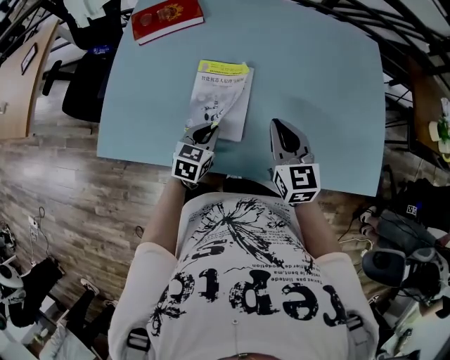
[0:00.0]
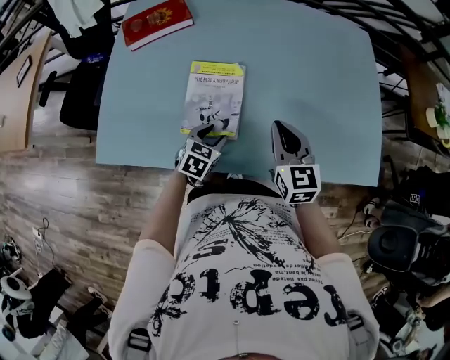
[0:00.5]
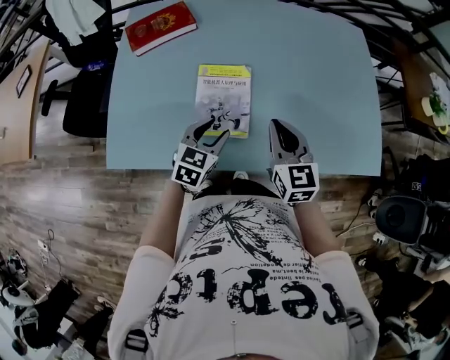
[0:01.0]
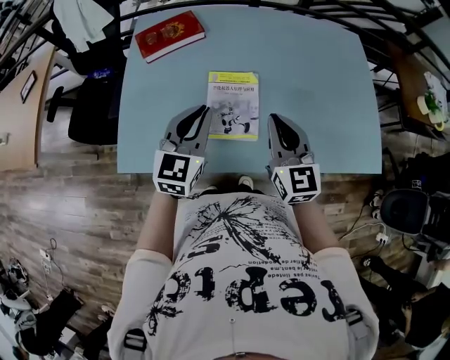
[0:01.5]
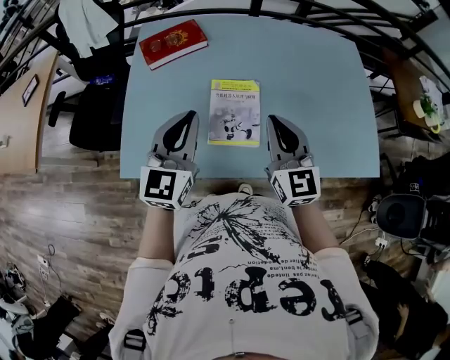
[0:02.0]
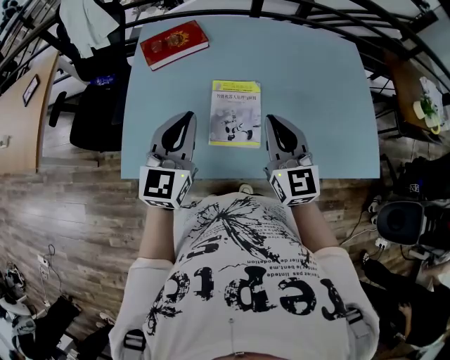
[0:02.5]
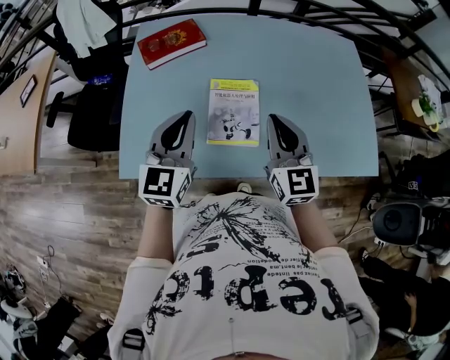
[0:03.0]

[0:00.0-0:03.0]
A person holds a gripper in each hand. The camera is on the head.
0:00.0 to 0:01.5: The right gripper heads upward and to the left, covering approximately 10 cm; the left gripper goes roughly 20 cm upward, turns by roughly 30 degrees, and opens and closes again.
0:01.5 to 0:03.0: The left gripper ends up approximately 5 cm from where it was.

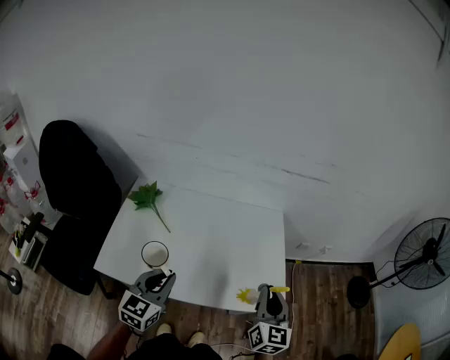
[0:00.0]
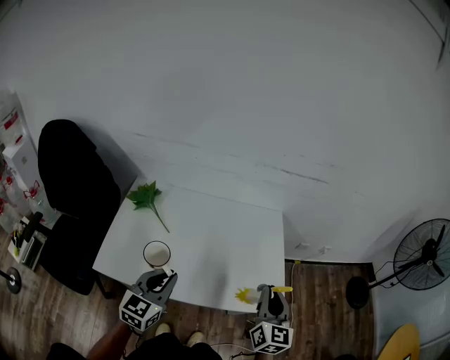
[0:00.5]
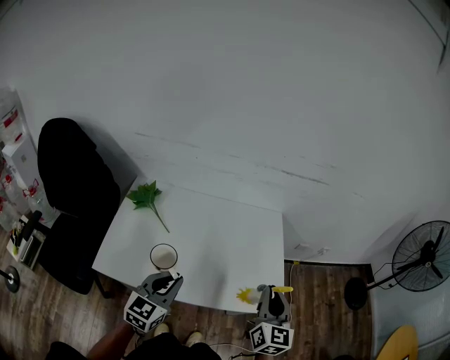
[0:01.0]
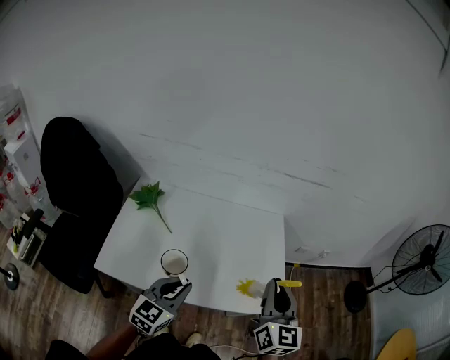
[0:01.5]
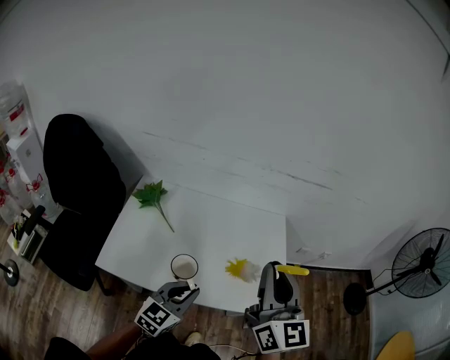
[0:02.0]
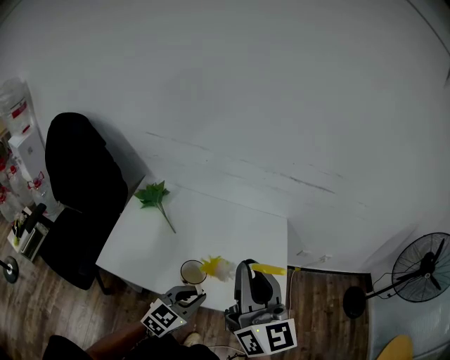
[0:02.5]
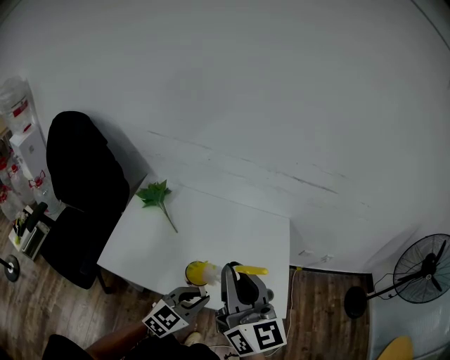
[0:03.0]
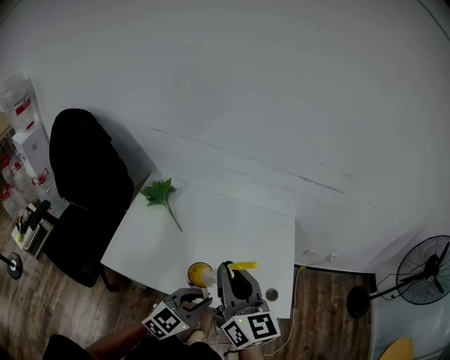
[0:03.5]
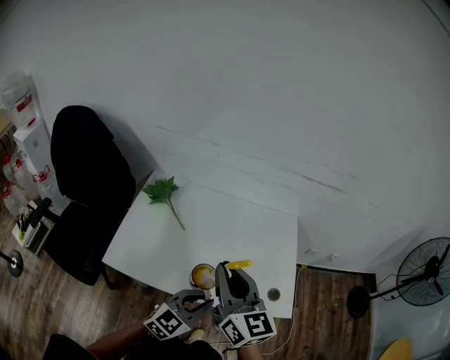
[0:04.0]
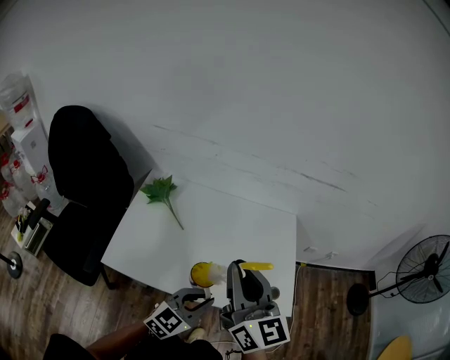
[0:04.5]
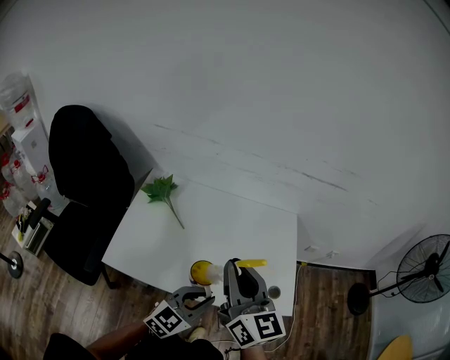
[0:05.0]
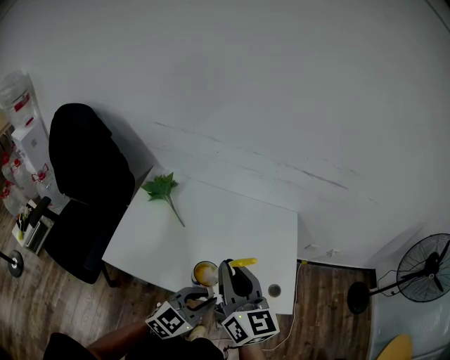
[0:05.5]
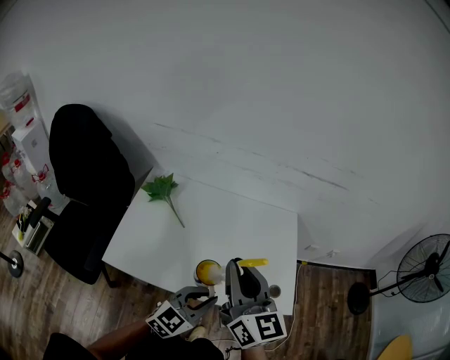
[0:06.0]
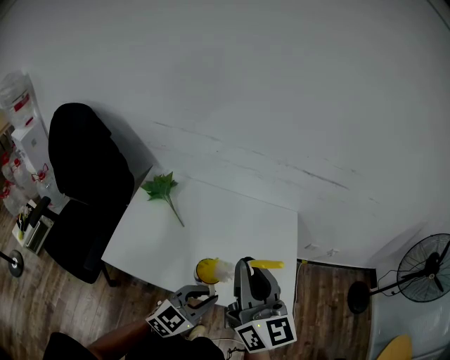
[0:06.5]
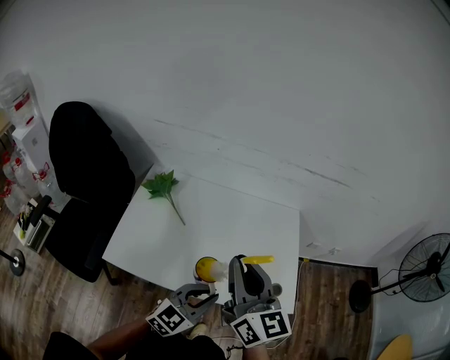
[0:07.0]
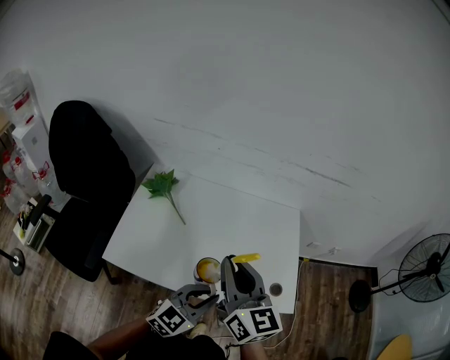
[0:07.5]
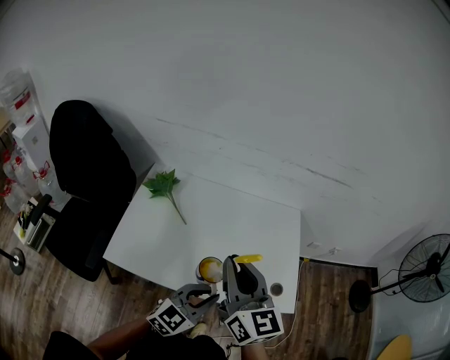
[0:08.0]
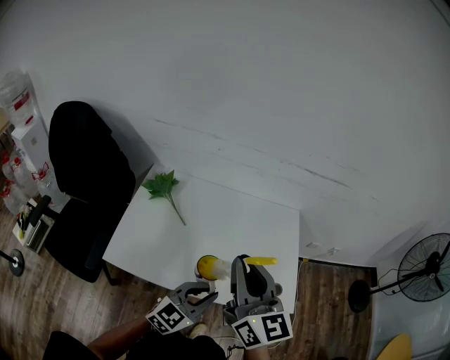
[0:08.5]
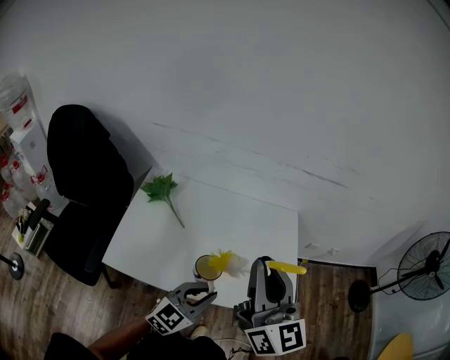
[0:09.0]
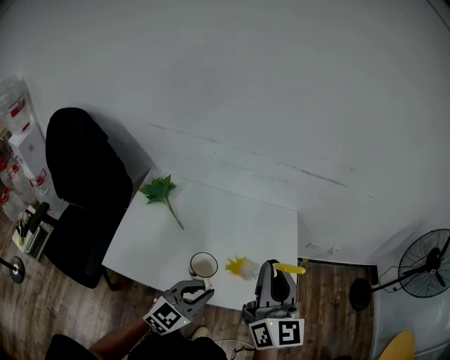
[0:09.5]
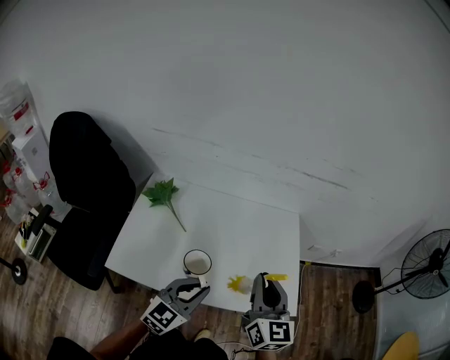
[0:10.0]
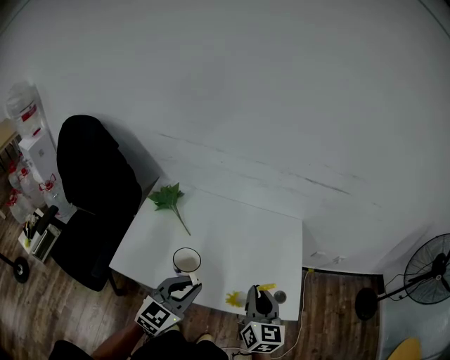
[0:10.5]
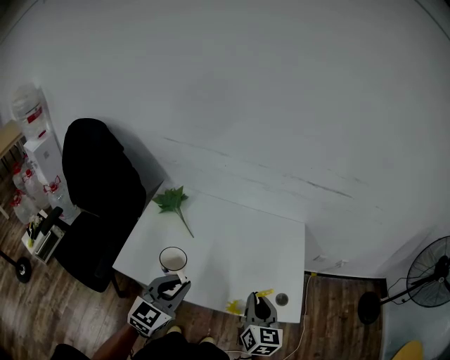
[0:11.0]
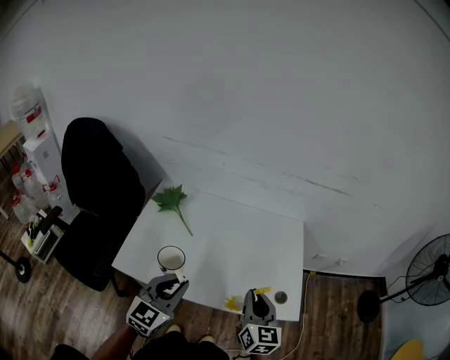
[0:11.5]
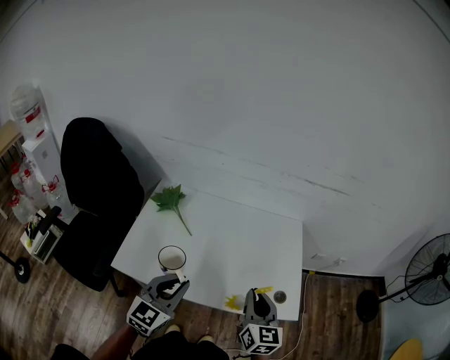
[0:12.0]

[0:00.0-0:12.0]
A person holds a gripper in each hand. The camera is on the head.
0:00.0 to 0:02.0: The right gripper heads upward and to the left, covering roughly 20 cm, and swivels roughly 20 degrees. Meanwhile the left gripper moves to the right, approximately 5 cm.
0:02.0 to 0:04.0: The right gripper travels to the left and downward by roughly 15 cm.
0:04.0 to 0:06.0: The grippers move only a little.
0:06.0 to 0:08.0: The grippers move only a little.
0:08.0 to 0:10.0: The right gripper heads to the right, covering about 10 cm.
0:10.0 to 0:12.0: The right gripper shifts approximately 10 cm downward; the left gripper goes some 5 cm to the left.

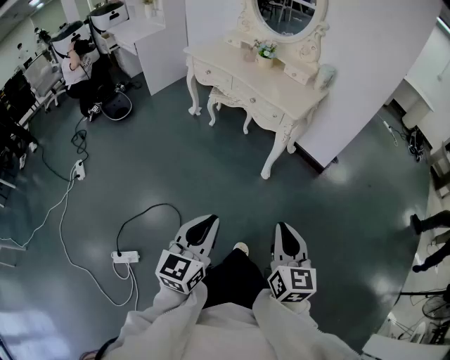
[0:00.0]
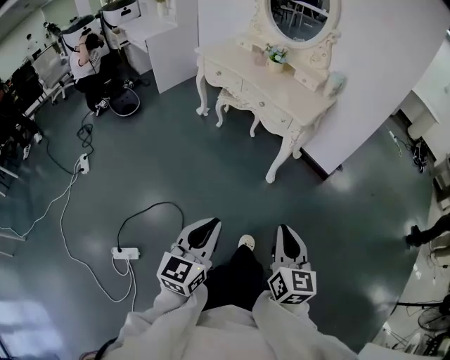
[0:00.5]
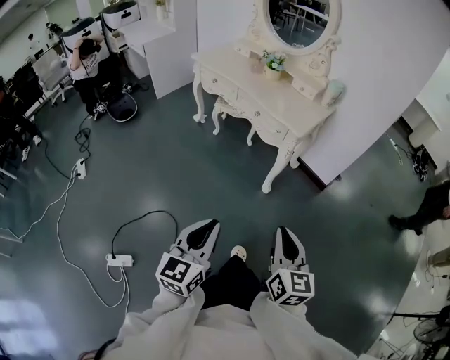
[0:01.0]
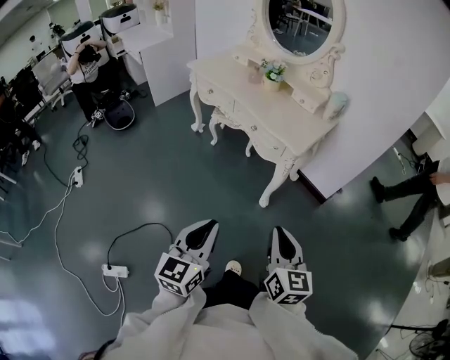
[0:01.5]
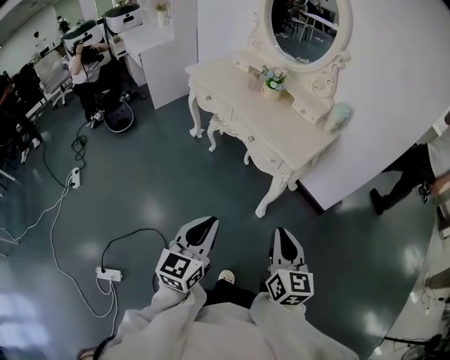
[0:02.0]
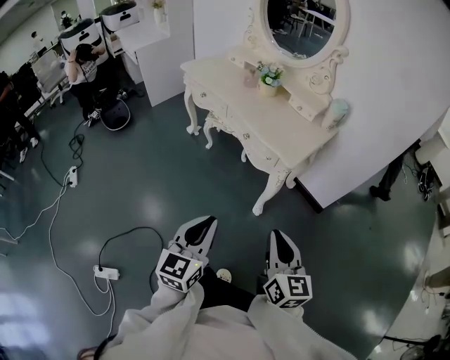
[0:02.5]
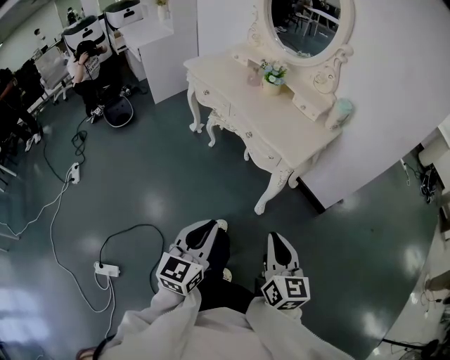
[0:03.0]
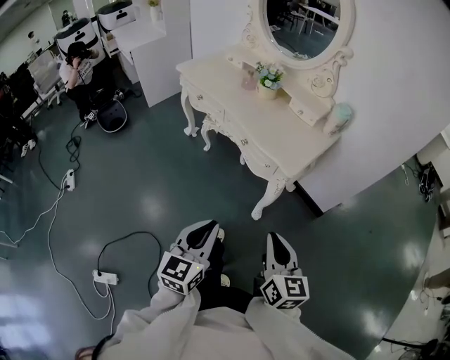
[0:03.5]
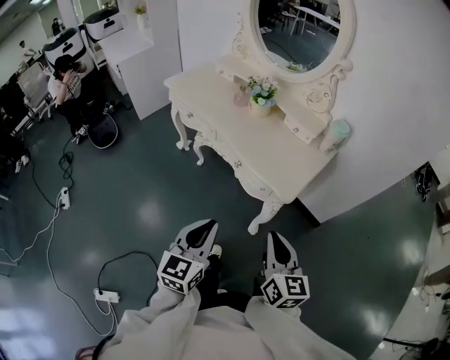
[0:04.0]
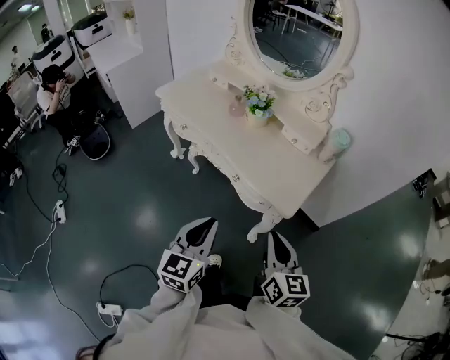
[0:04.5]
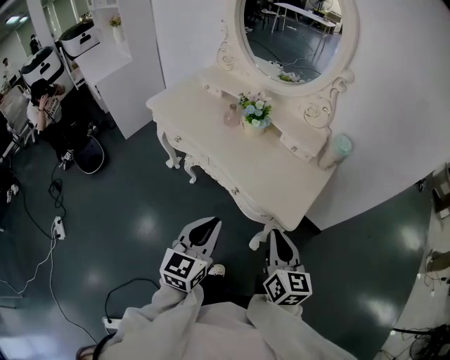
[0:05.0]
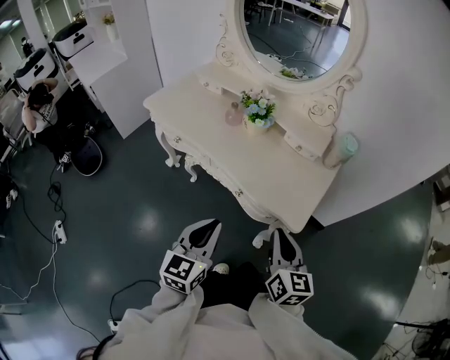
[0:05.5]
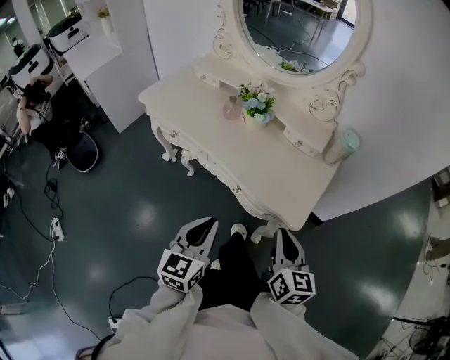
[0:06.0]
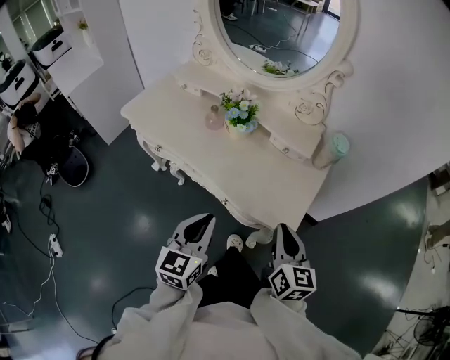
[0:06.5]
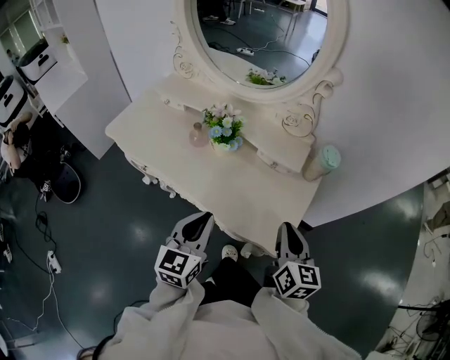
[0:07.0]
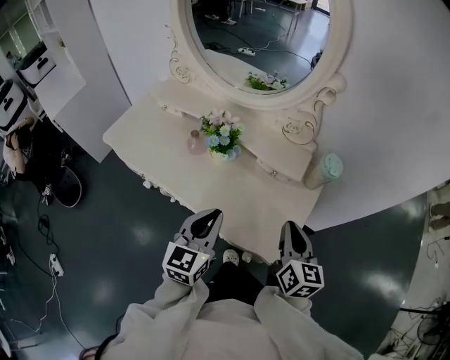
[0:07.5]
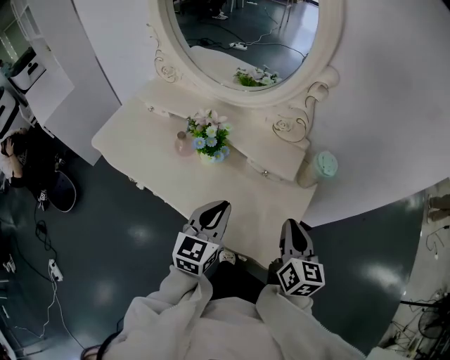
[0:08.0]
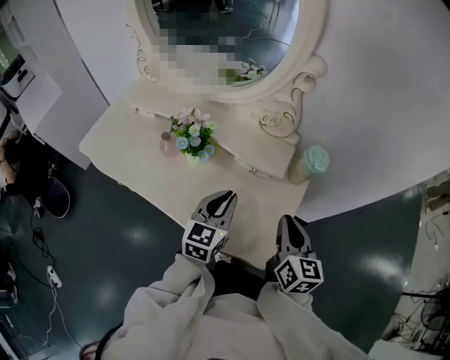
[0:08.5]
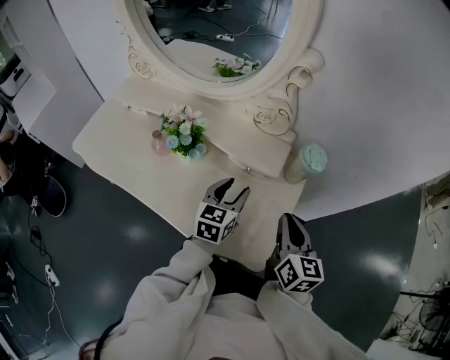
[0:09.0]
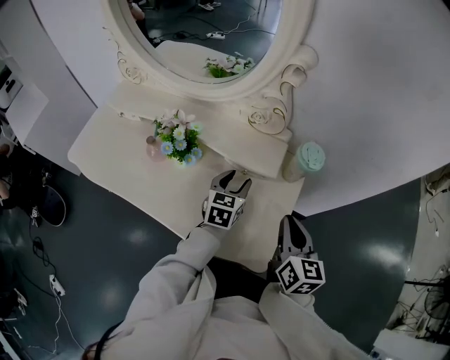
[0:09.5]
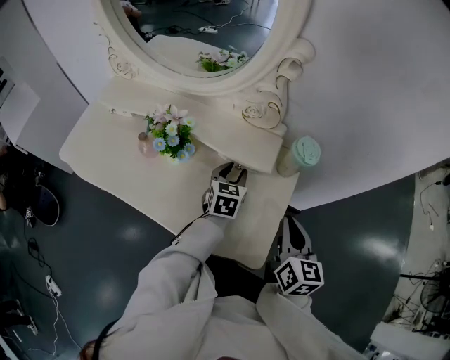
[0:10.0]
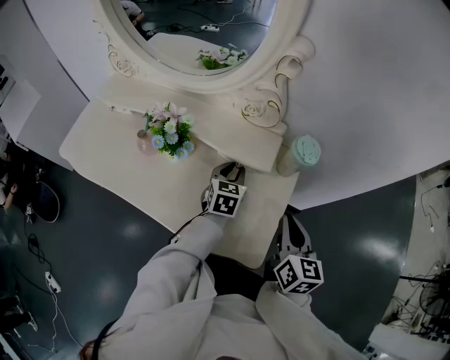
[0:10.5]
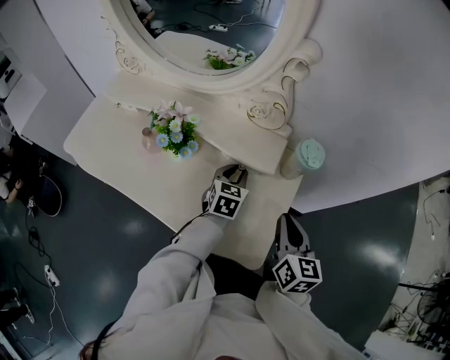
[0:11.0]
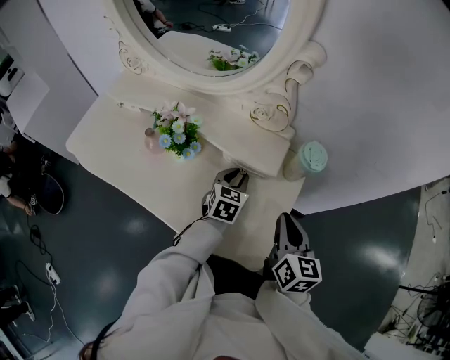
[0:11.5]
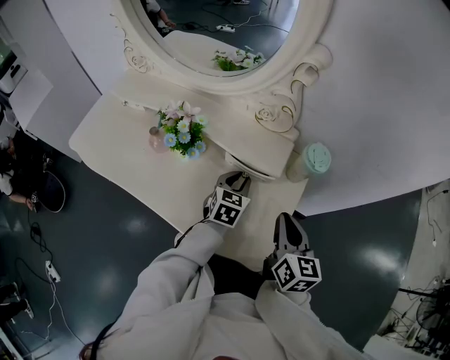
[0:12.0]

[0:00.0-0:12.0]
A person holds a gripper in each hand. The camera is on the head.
0:00.0 to 0:02.0: The grippers both shift forward by about 25 cm.
0:02.0 to 0:04.0: Both grippers travel together forward, roughly 15 cm.
0:04.0 to 0:06.0: The left gripper is displaced forward and to the left by roughly 15 cm; the right gripper goes approximately 15 cm forward.
0:06.0 to 0:08.0: The right gripper moves forward and to the right, roughly 20 cm. Meanwhile the left gripper is displaced forward by roughly 25 cm.
0:08.0 to 0:10.0: The left gripper is displaced forward, downward and to the right by approximately 25 cm, turns by some 20 degrees, and opens up. Meanwhile the right gripper is displaced to the right by about 5 cm.
0:10.0 to 0:12.0: The grippers move only a little.
